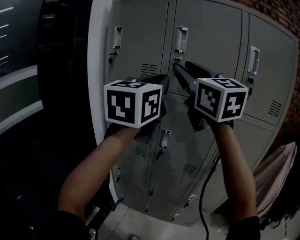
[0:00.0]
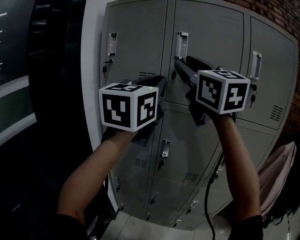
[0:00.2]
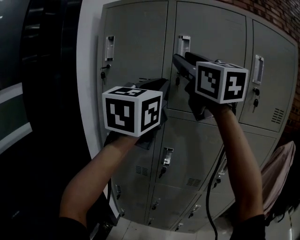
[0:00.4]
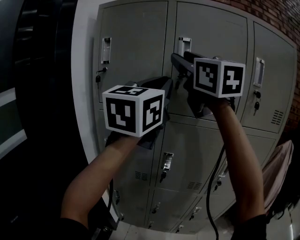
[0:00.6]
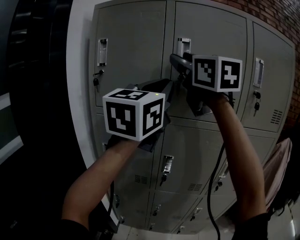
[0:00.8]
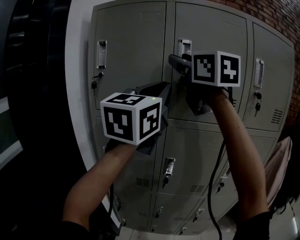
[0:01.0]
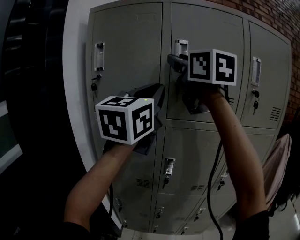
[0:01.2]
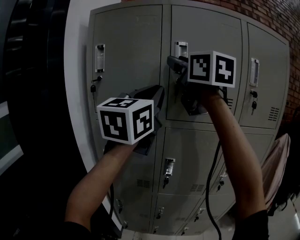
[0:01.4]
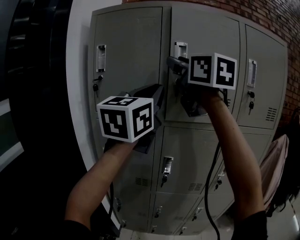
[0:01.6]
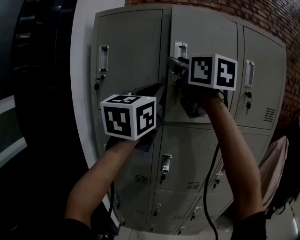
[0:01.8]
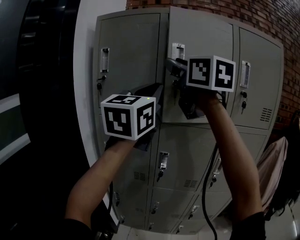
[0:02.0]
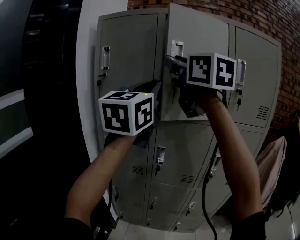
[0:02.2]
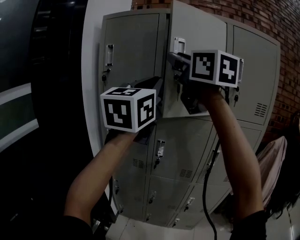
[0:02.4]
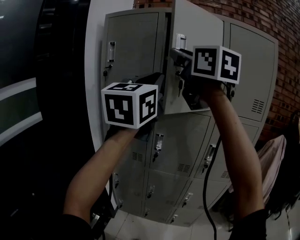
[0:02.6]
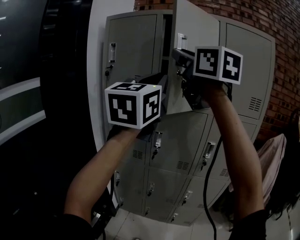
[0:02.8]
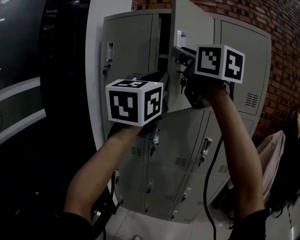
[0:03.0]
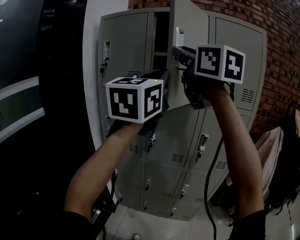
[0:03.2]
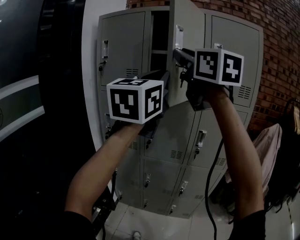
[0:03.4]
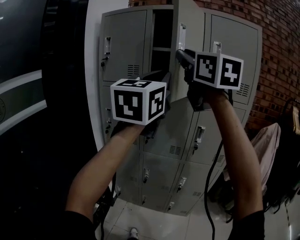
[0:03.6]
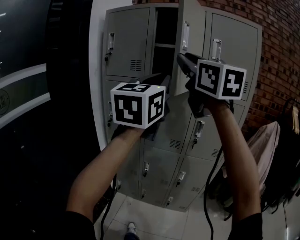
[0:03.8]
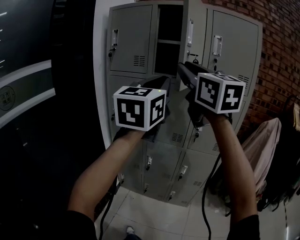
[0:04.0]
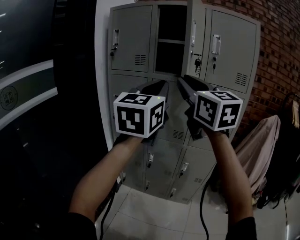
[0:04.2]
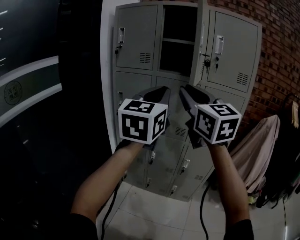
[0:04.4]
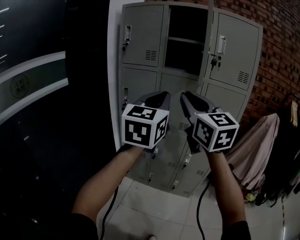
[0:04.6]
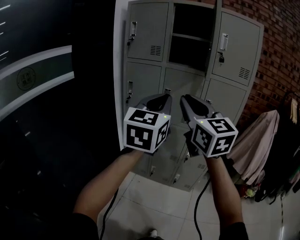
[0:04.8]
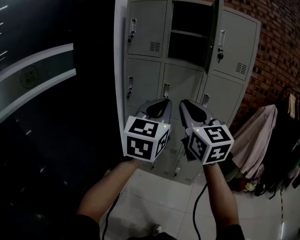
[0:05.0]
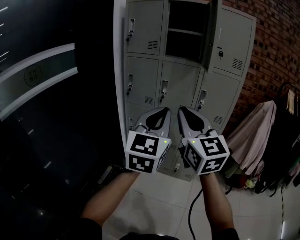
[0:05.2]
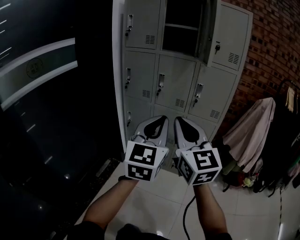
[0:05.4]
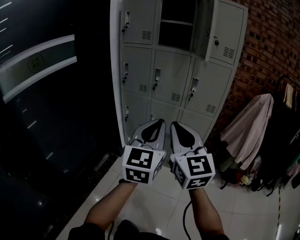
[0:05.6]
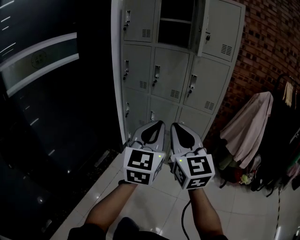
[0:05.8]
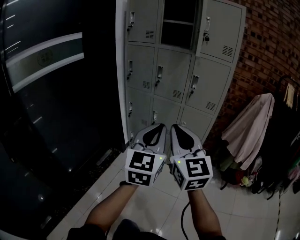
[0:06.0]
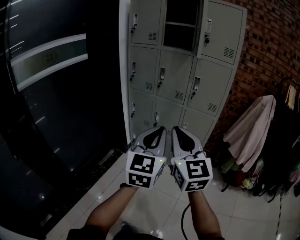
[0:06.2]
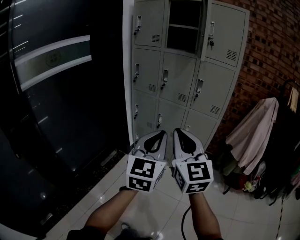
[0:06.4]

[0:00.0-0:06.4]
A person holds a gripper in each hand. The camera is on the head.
0:00.0 to 0:01.6: The right gripper shifts approximately 15 cm forward and upward; the left gripper heads forward, covering about 10 cm.
0:01.6 to 0:03.2: The grippers both shift backward and to the right by about 20 cm.
0:03.2 to 0:04.8: The left gripper is displaced backward and downward by some 25 cm, while the right gripper moves downward and backward, roughly 30 cm.
0:04.8 to 0:06.4: Both grippers travel together backward, downward and to the right, approximately 30 cm.

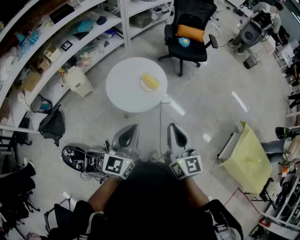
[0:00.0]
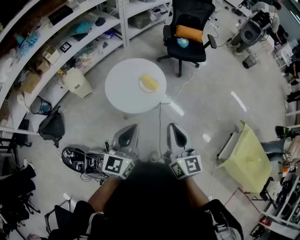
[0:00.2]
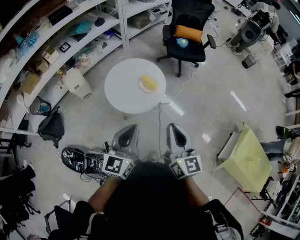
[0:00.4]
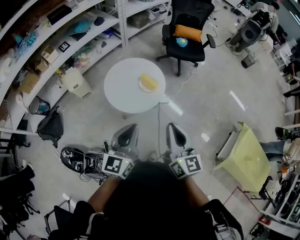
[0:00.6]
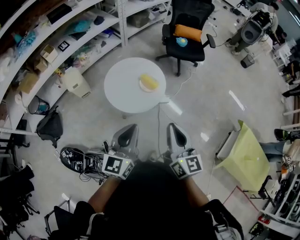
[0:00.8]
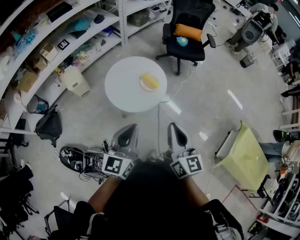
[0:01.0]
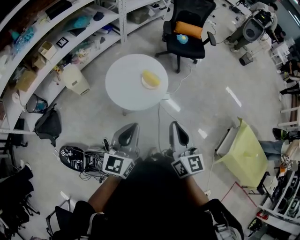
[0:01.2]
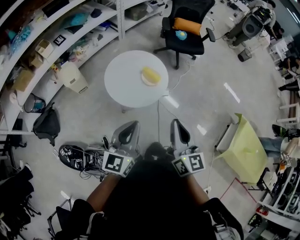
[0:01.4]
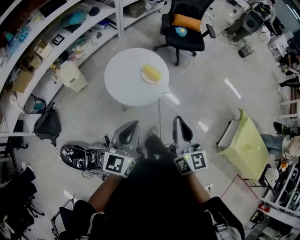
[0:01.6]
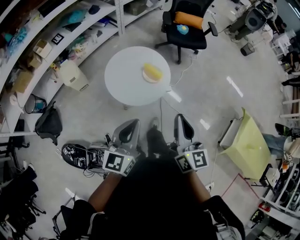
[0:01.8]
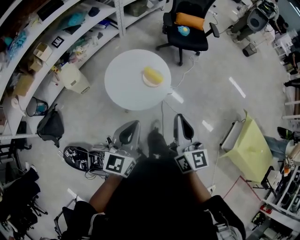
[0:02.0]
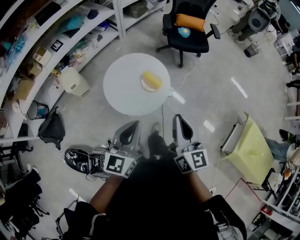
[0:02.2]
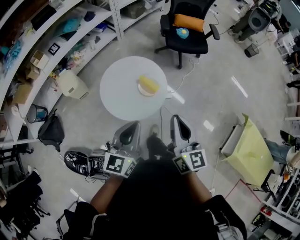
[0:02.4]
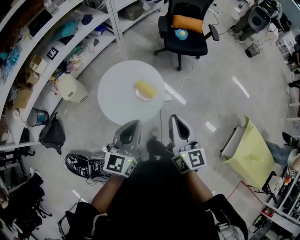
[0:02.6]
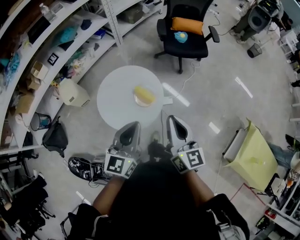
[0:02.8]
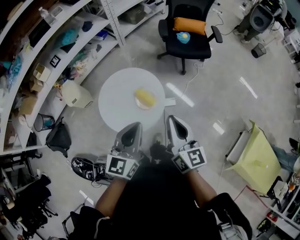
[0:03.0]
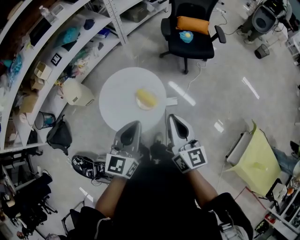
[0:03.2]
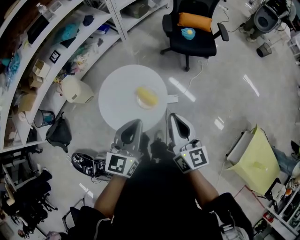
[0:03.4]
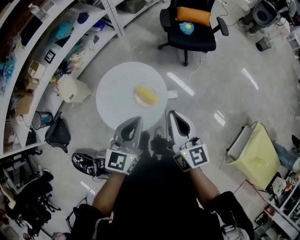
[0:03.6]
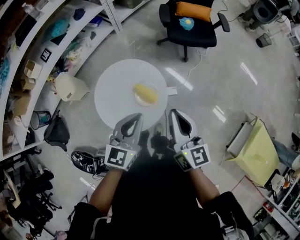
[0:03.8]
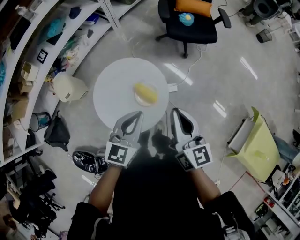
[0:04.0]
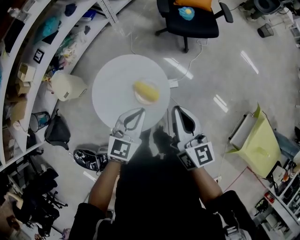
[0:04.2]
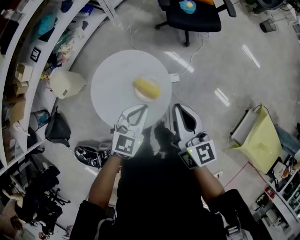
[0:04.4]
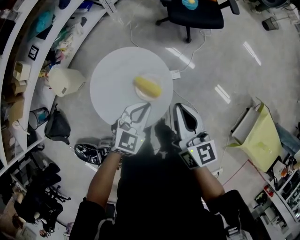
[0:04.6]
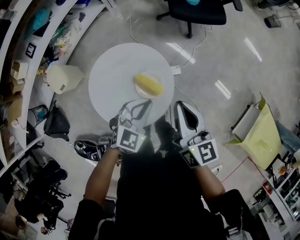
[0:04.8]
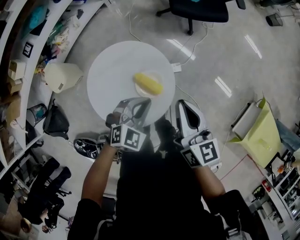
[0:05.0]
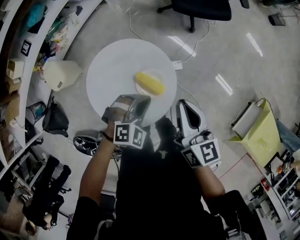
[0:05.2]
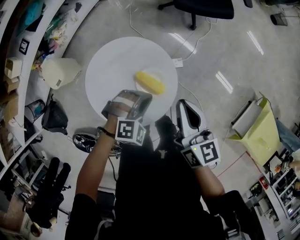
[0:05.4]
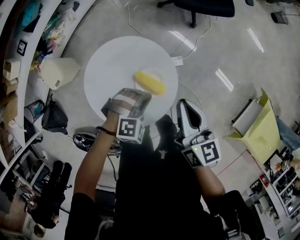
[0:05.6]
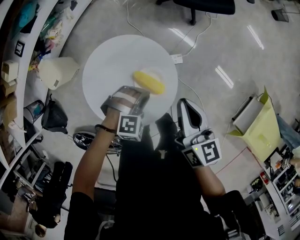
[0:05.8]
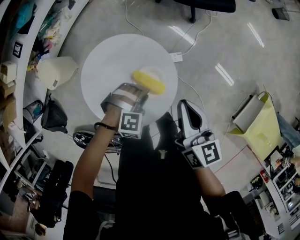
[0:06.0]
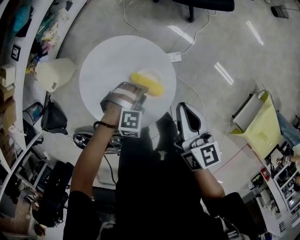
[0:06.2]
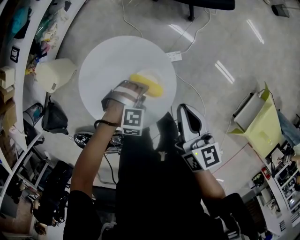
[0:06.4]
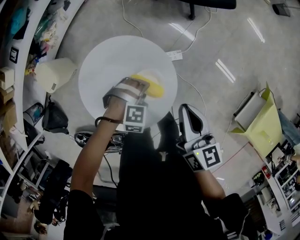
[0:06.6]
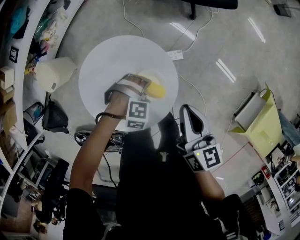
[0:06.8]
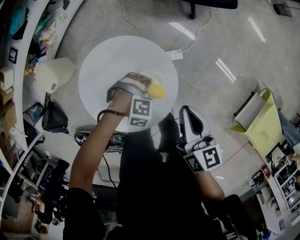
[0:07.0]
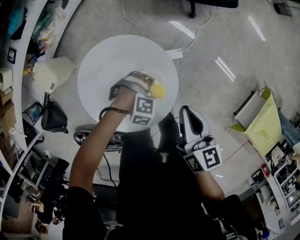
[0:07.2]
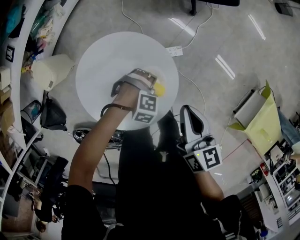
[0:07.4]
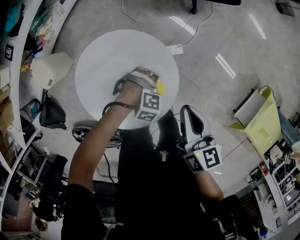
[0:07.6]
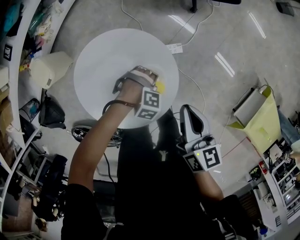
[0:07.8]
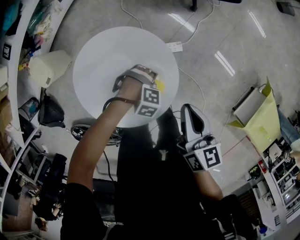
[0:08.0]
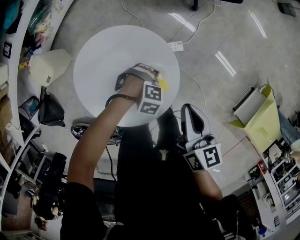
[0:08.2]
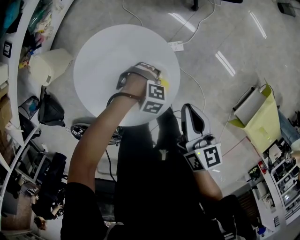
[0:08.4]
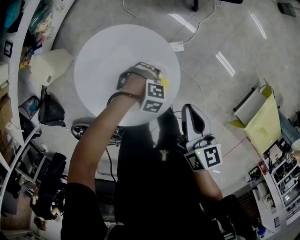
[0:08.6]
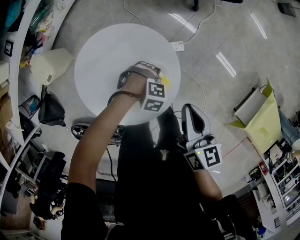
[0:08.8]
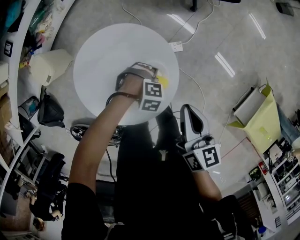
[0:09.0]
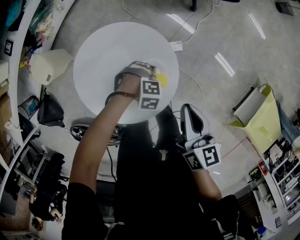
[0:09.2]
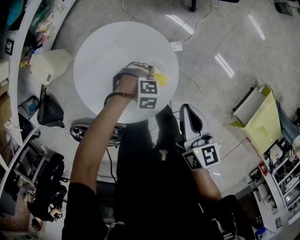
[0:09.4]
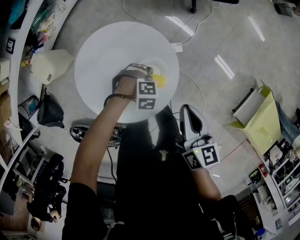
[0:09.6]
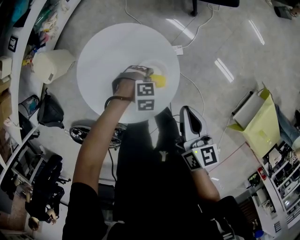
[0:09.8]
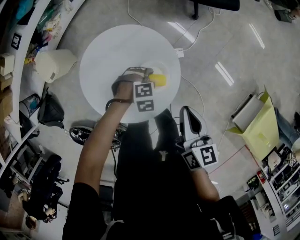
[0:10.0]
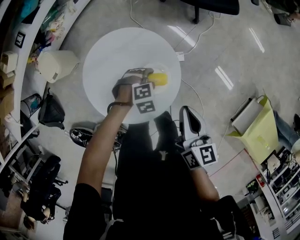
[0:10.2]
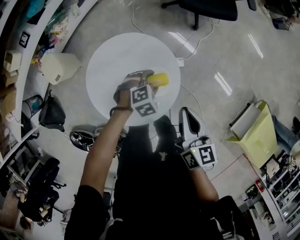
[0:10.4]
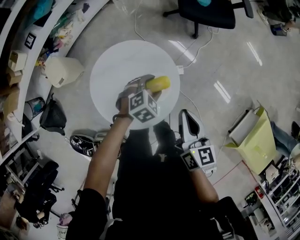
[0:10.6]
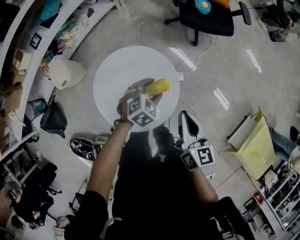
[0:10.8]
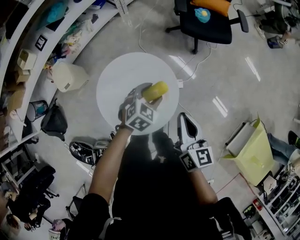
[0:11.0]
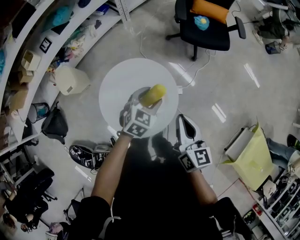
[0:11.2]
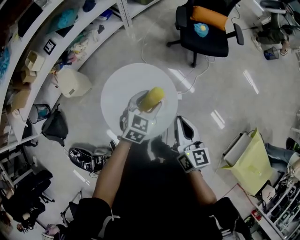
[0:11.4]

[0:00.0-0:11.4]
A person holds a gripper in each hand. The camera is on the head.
0:00.0 to 0:01.4: The grippers stay close to where they were, moving slightly.
0:01.4 to 0:02.8: The left gripper goes roughly 20 cm forward and to the right, while the right gripper goes approximately 20 cm forward.
0:02.8 to 0:04.2: Both grippers move forward and downward, roughly 15 cm. The left gripper swivels about 20 degrees.
0:04.2 to 0:05.6: The right gripper shifts roughly 10 cm downward and forward. The left gripper goes roughly 15 cm downward, and rotates around the line of its fingers by some 60 degrees, clockwise from behind.
0:05.6 to 0:07.2: The right gripper changes place by approximately 5 cm. Meanwhile the left gripper travels downward by about 15 cm, changes its angle by some 30 degrees, and opens its fingers.
0:07.2 to 0:08.6: The grippers move only a little.
0:08.6 to 0:10.0: The left gripper changes its angle by roughly 30 degrees.
0:10.0 to 0:11.4: The right gripper moves upward, roughly 10 cm; the left gripper heads upward, covering some 25 cm, and angles its fingers upward, by some 40 degrees.

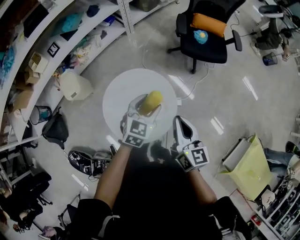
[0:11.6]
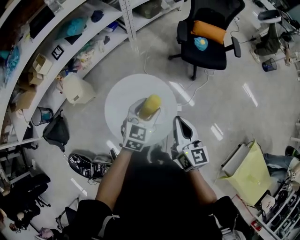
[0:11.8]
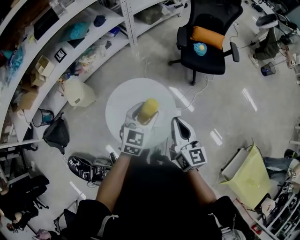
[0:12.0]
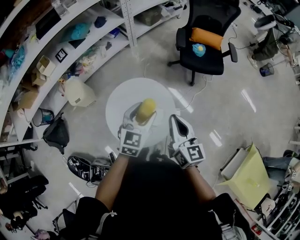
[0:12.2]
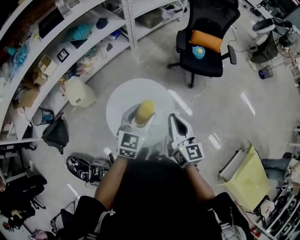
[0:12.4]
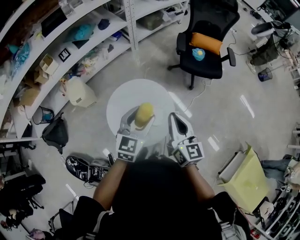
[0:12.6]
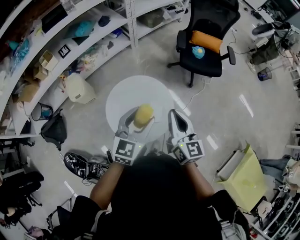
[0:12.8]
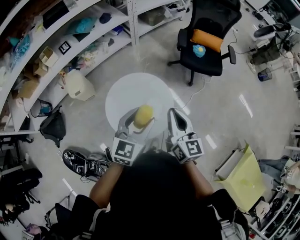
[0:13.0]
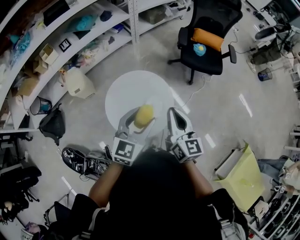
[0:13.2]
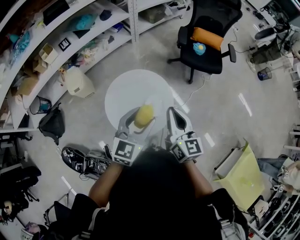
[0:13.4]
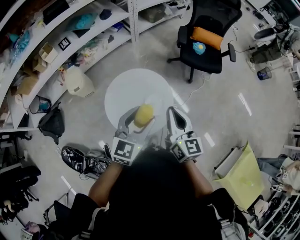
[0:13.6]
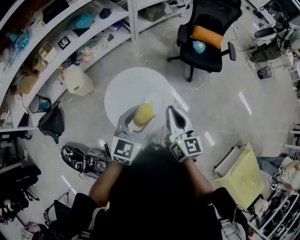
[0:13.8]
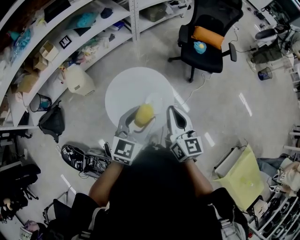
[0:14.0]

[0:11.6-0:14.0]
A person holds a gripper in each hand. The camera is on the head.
0:11.6 to 0:12.8: The right gripper is displaced upward by approximately 5 cm; the left gripper moves upward and backward, some 15 cm.
0:12.8 to 0:14.0: The grippers stay close to where they were, moving slightly.

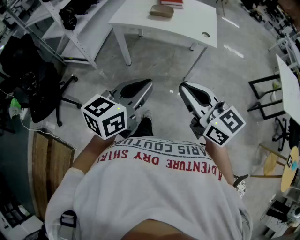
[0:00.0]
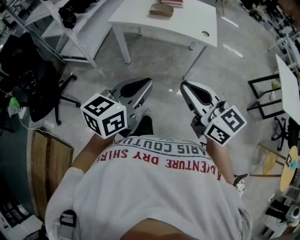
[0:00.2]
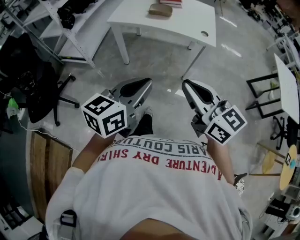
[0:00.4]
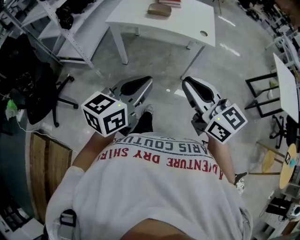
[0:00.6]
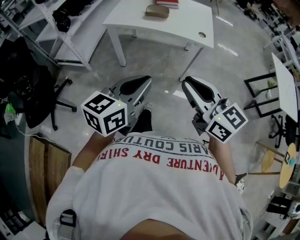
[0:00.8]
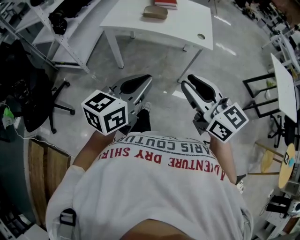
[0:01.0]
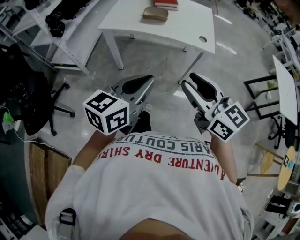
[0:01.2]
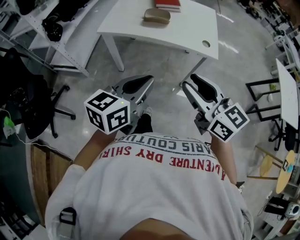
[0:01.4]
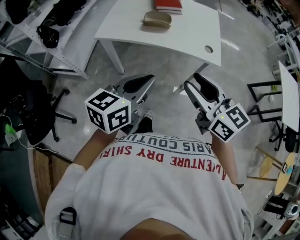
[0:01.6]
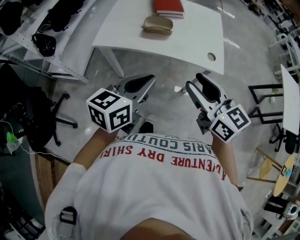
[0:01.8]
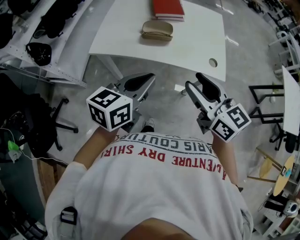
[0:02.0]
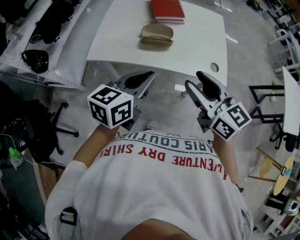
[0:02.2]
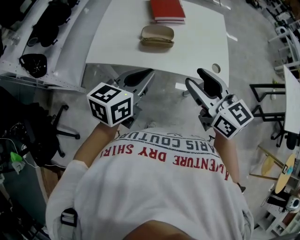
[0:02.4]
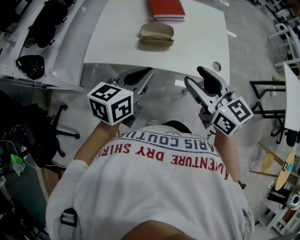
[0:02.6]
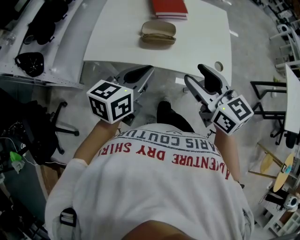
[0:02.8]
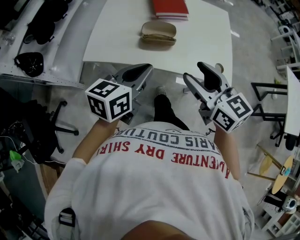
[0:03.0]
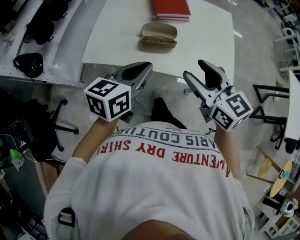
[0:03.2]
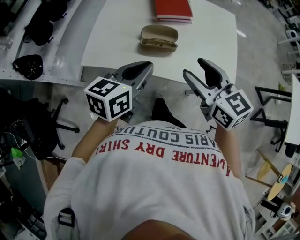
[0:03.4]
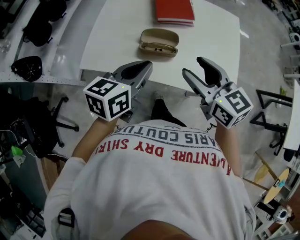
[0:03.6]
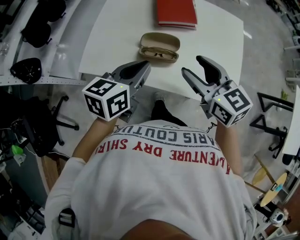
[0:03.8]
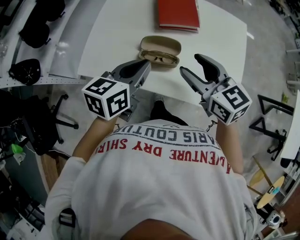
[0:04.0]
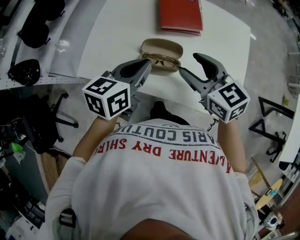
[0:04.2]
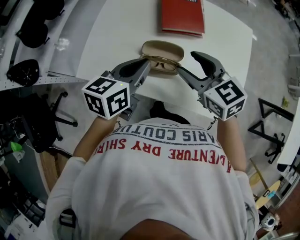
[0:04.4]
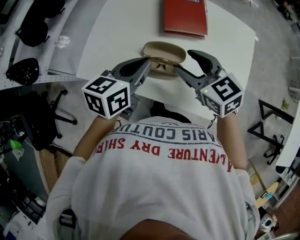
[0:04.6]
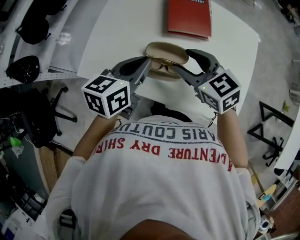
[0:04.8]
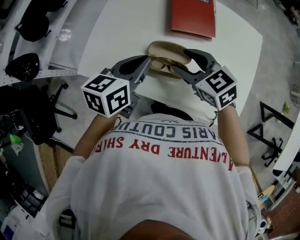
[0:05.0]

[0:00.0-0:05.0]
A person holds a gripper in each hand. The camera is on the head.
0:00.0 to 0:01.6: The two grippers go about 20 cm forward. The right gripper opens.
0:01.6 to 0:03.4: The grippers both shift forward by approximately 30 cm.
0:03.4 to 0:05.0: The left gripper shifts some 15 cm forward. Meanwhile the right gripper goes about 20 cm forward and downward, and swivels about 30 degrees.
